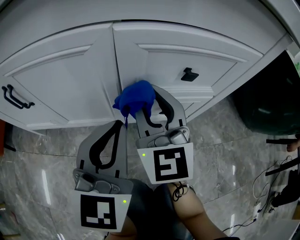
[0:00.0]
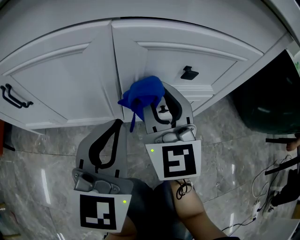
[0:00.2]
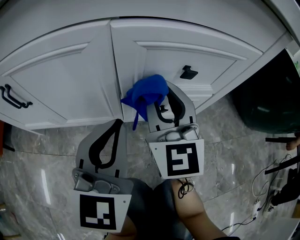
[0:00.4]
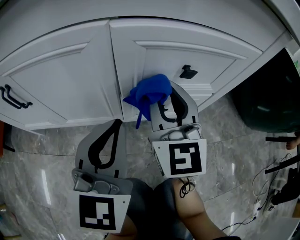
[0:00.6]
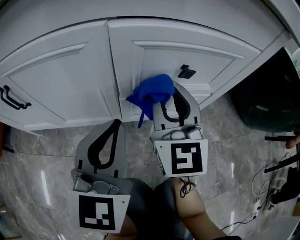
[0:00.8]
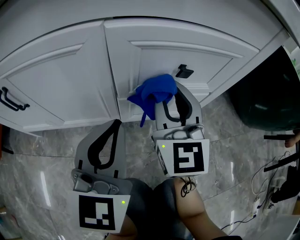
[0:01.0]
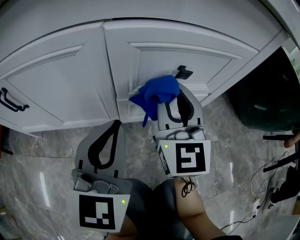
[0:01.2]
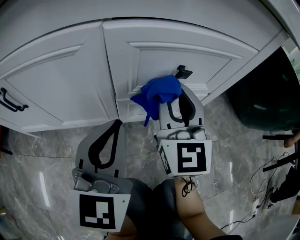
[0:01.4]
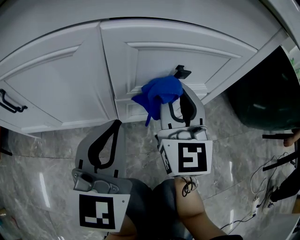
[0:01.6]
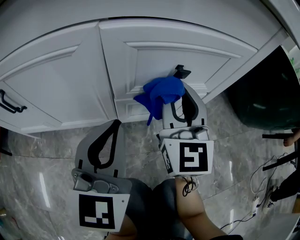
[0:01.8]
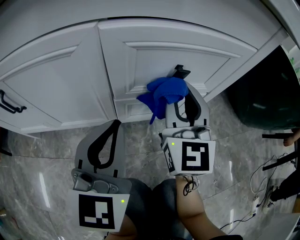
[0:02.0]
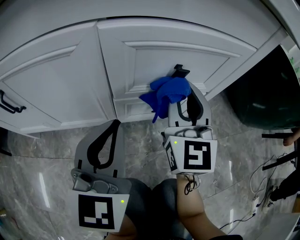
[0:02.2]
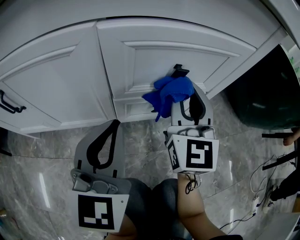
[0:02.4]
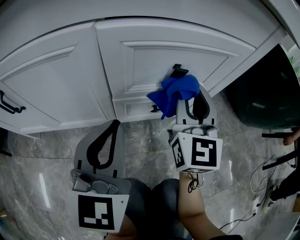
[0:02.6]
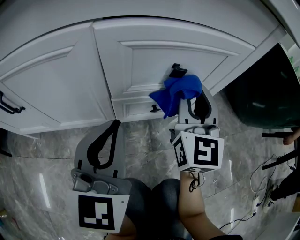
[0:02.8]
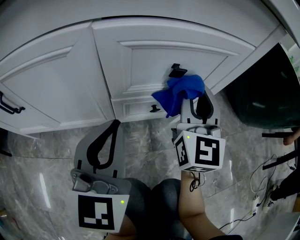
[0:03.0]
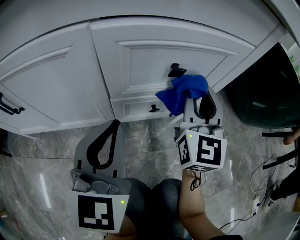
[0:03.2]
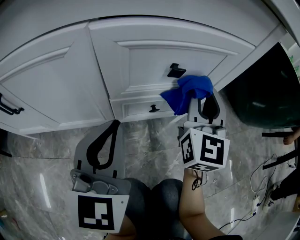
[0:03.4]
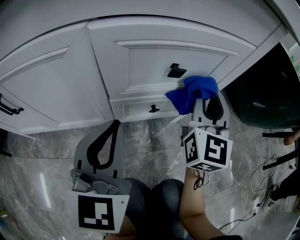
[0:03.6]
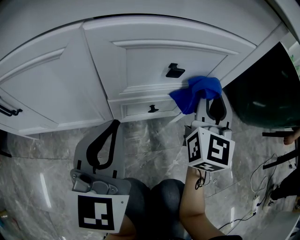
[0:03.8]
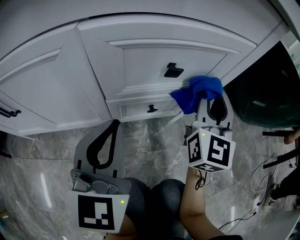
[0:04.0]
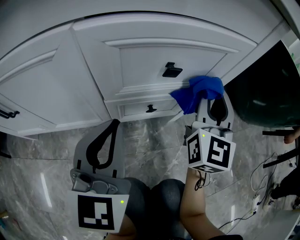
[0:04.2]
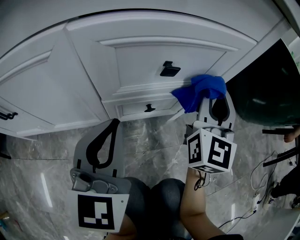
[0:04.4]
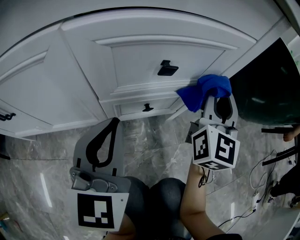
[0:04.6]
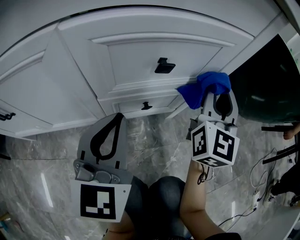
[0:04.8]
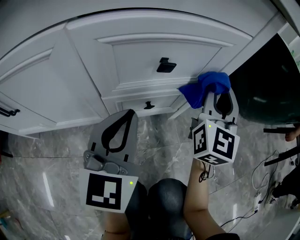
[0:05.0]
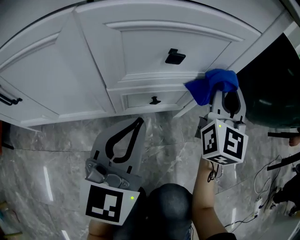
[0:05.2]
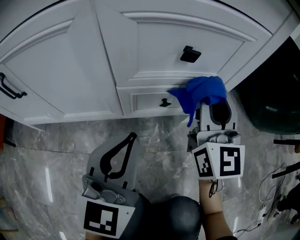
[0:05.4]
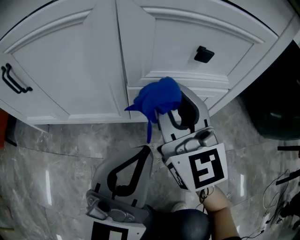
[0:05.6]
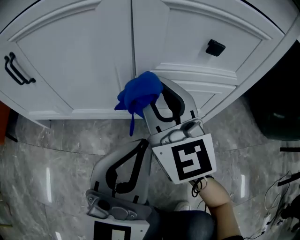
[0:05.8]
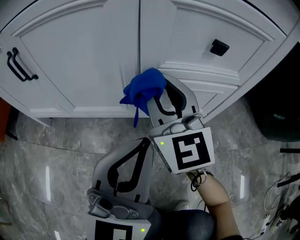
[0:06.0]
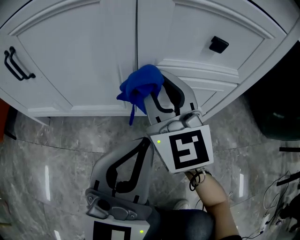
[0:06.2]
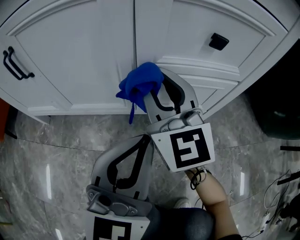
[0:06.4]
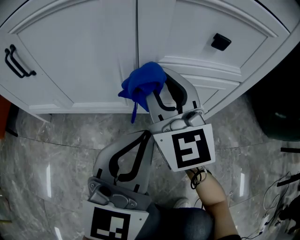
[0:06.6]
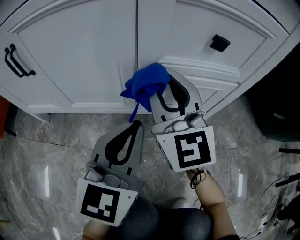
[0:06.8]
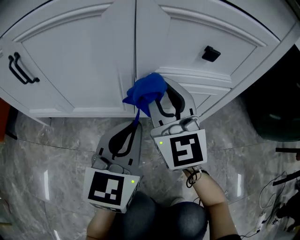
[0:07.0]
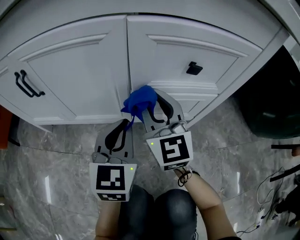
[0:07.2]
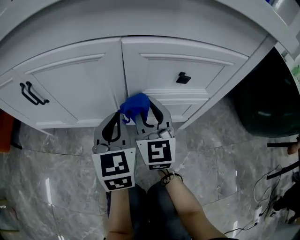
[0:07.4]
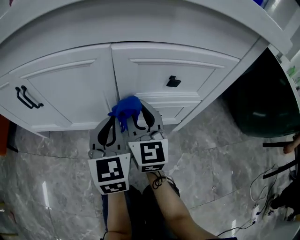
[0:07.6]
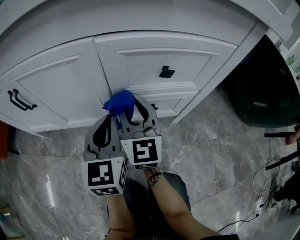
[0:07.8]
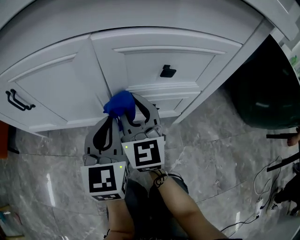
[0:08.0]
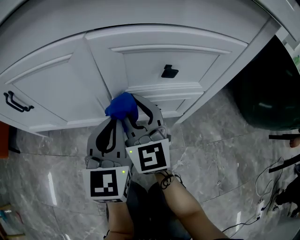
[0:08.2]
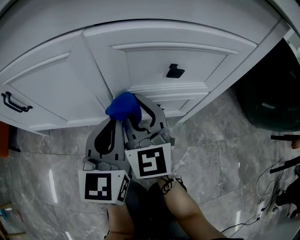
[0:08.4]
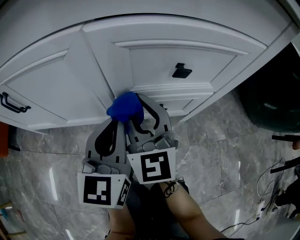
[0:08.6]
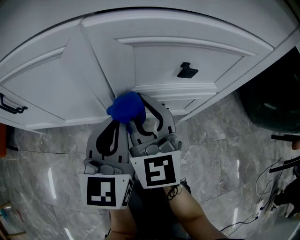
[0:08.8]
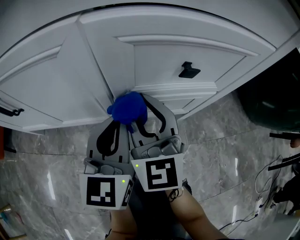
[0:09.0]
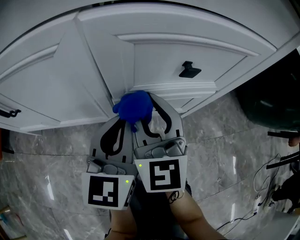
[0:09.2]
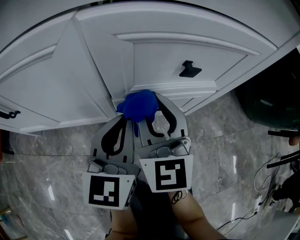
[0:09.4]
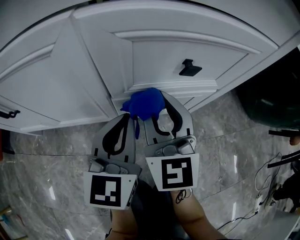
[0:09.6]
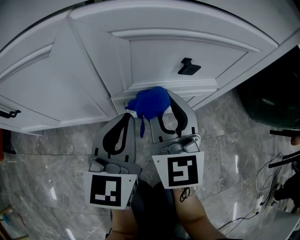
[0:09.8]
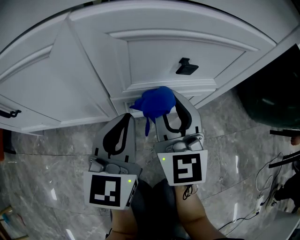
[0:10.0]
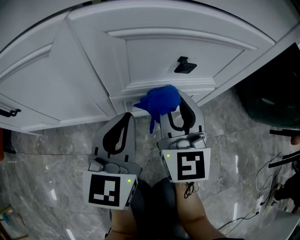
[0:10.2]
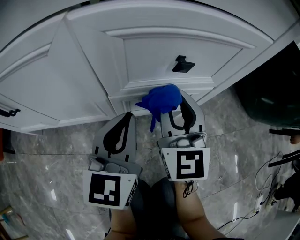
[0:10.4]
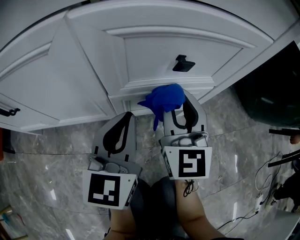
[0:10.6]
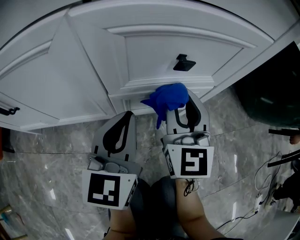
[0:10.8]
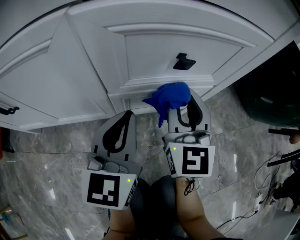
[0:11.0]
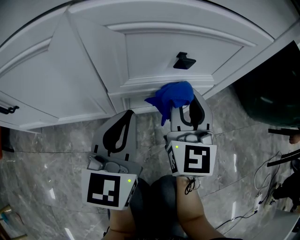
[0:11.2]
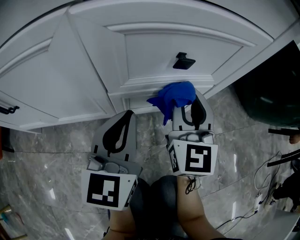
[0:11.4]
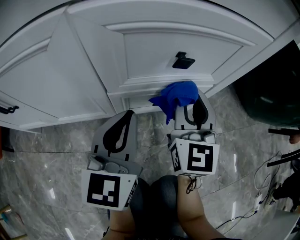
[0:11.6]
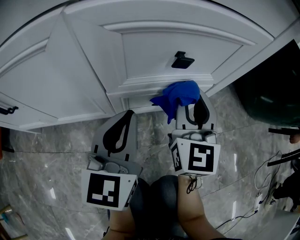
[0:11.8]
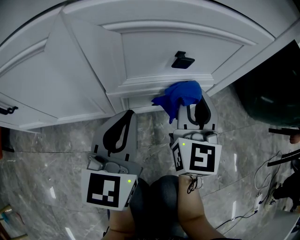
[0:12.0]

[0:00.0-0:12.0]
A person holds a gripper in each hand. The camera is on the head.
0:00.0 to 0:01.6: The right gripper travels to the right by approximately 10 cm.
0:01.6 to 0:03.0: The right gripper is displaced to the right by approximately 5 cm.
0:03.0 to 0:04.4: The right gripper goes about 5 cm to the right.
0:04.4 to 0:06.0: The right gripper heads to the left, covering approximately 25 cm, and swivels some 40 degrees. The left gripper is displaced backward by some 5 cm.
0:06.0 to 0:07.6: The left gripper goes about 10 cm forward, and rotates roughly 20 degrees.
0:07.6 to 0:09.0: The grippers move only a little.
0:09.0 to 0:10.4: The right gripper goes about 10 cm to the right.
0:10.4 to 0:12.0: The right gripper moves to the right, roughly 5 cm.

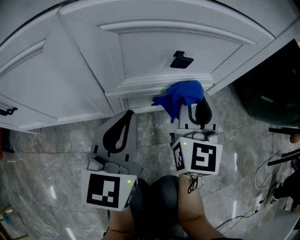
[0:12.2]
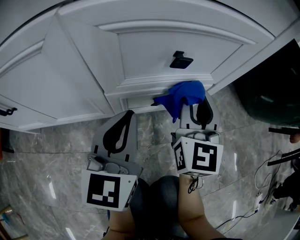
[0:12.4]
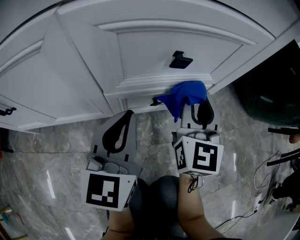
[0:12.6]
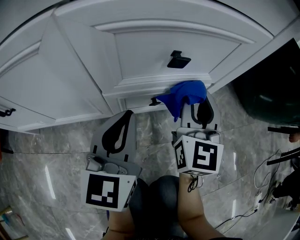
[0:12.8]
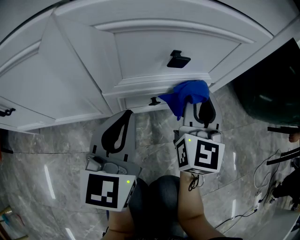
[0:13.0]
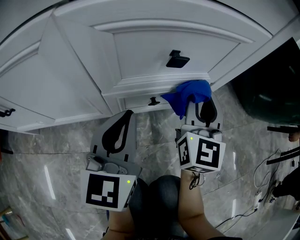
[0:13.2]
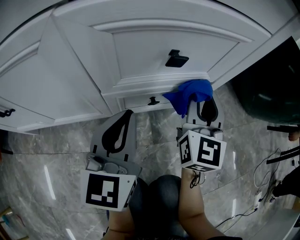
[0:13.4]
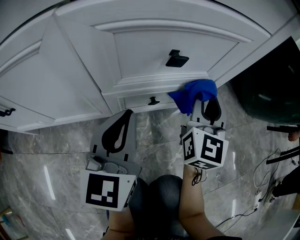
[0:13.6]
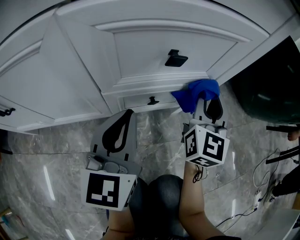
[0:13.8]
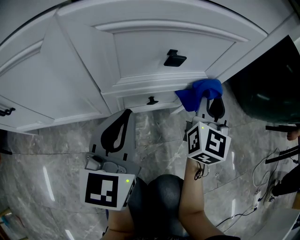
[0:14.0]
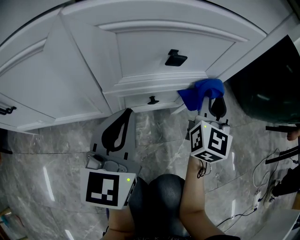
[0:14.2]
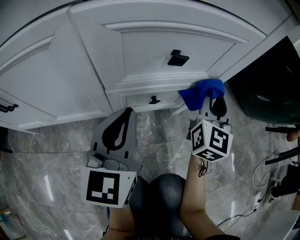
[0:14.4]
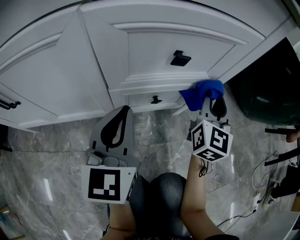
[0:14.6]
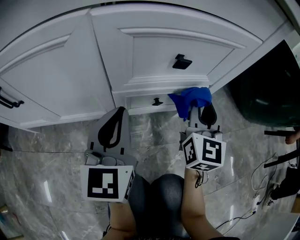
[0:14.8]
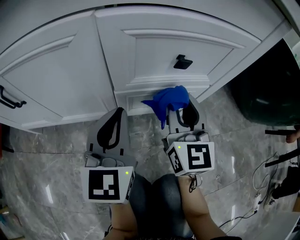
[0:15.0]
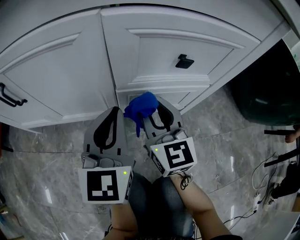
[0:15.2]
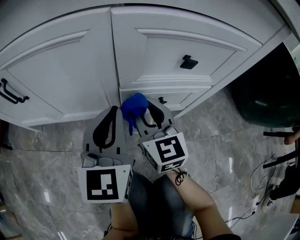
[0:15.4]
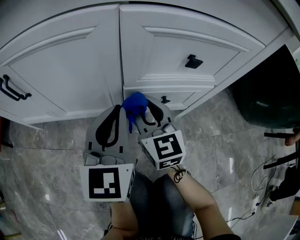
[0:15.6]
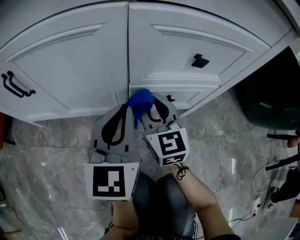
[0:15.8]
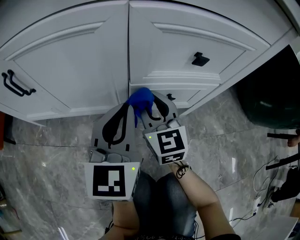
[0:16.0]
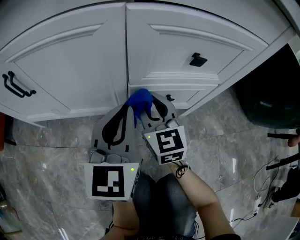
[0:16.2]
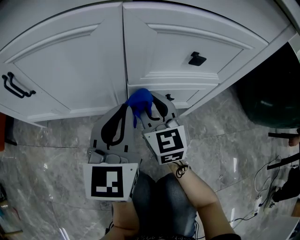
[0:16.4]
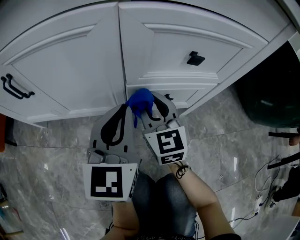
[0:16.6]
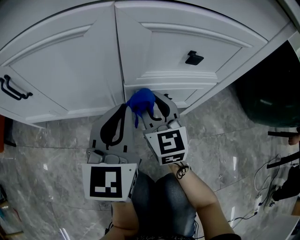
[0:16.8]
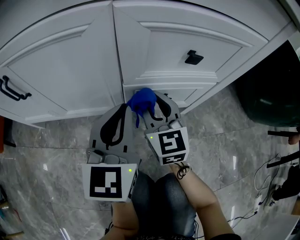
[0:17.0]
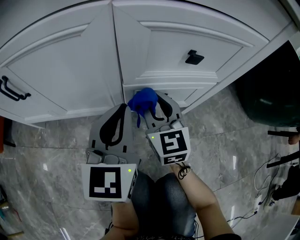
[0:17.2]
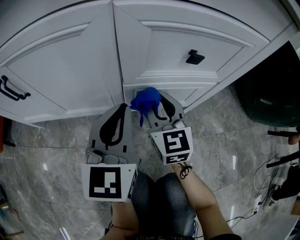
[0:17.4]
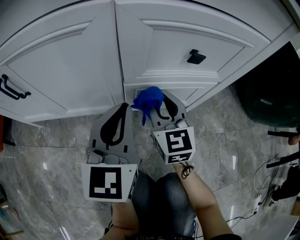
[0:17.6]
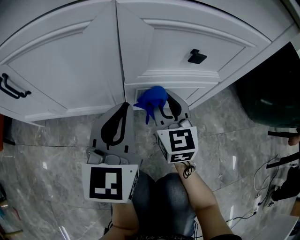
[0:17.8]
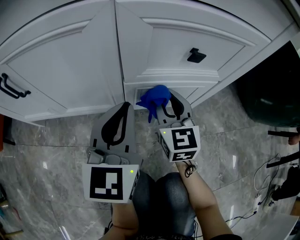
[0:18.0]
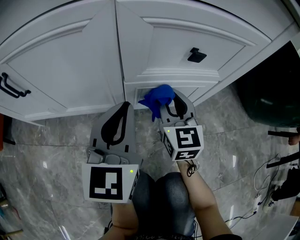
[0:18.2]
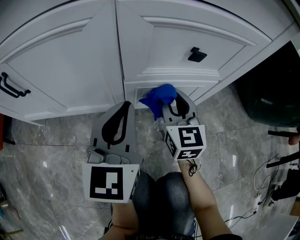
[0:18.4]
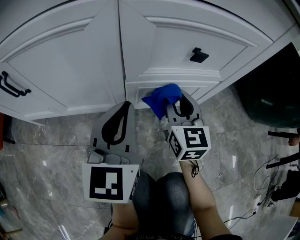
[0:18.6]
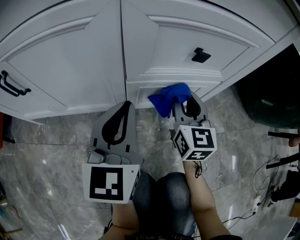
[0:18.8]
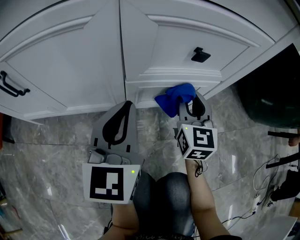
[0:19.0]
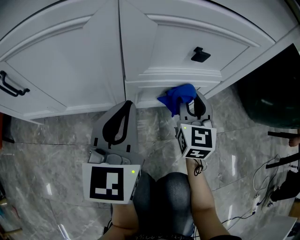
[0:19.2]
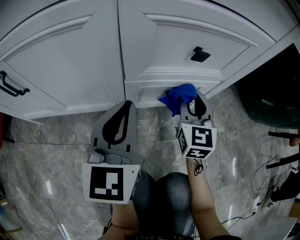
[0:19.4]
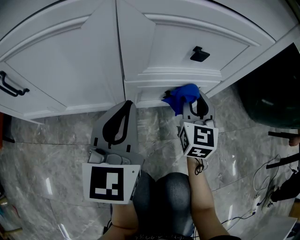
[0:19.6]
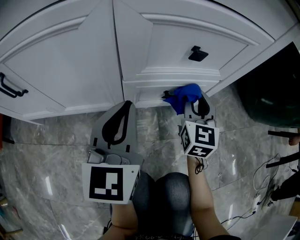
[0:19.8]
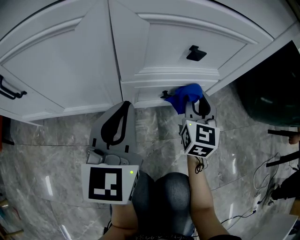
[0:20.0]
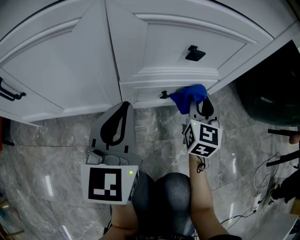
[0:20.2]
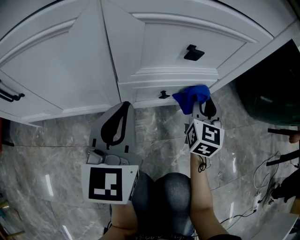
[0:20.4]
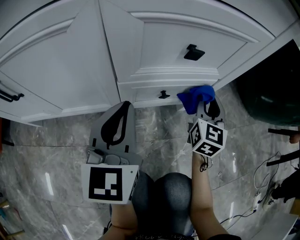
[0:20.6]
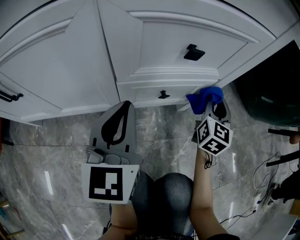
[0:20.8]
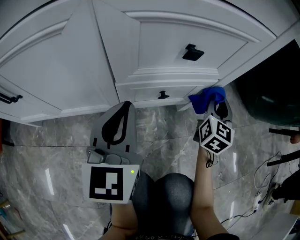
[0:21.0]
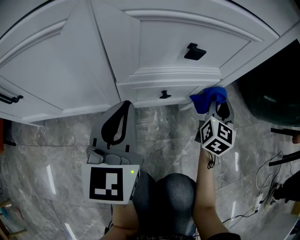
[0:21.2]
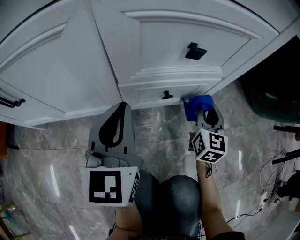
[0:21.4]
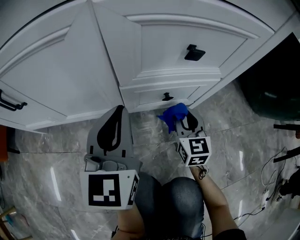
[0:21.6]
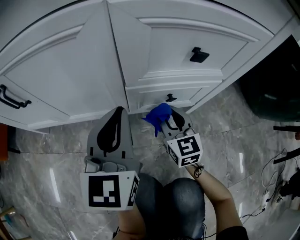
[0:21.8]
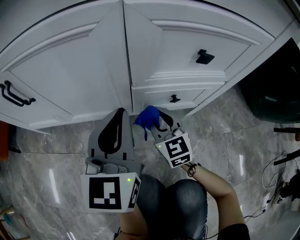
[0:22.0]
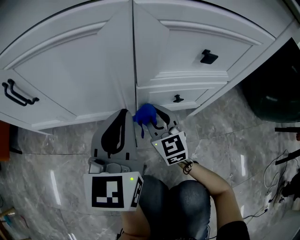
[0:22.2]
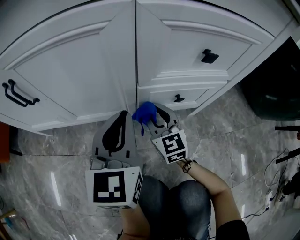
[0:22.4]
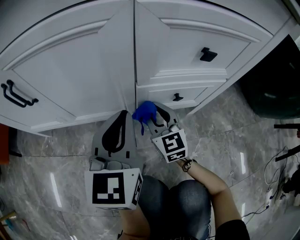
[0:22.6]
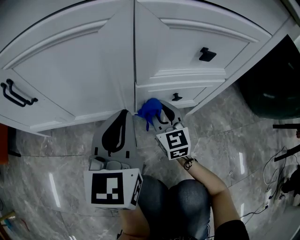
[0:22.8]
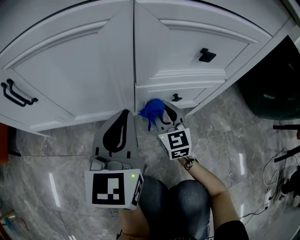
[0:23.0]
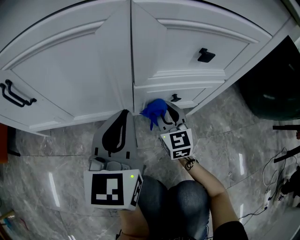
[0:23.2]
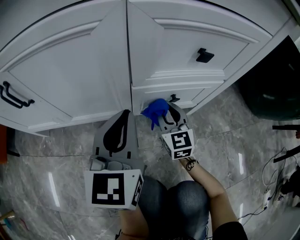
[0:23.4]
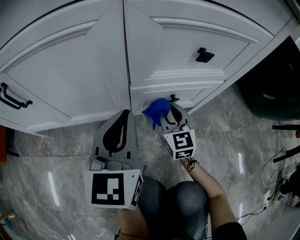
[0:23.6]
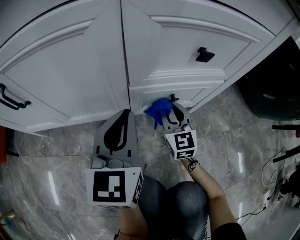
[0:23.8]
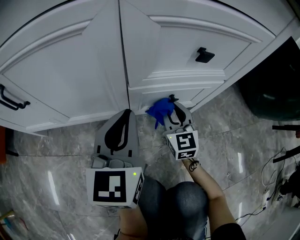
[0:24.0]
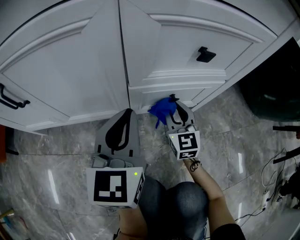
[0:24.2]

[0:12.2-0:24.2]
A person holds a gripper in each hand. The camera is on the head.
0:12.2 to 0:13.8: The right gripper is displaced to the right by roughly 5 cm.
0:13.8 to 0:15.2: The left gripper is displaced to the left by some 5 cm. The right gripper heads to the left, covering about 20 cm, and rotates roughly 40 degrees.
0:15.2 to 0:16.6: The right gripper changes place by roughly 5 cm.
0:16.6 to 0:18.2: The right gripper goes some 5 cm to the right.
0:18.2 to 0:19.8: The right gripper moves to the right, some 10 cm.
0:19.8 to 0:21.2: The right gripper is displaced to the right by roughly 10 cm.
0:21.2 to 0:22.6: The left gripper is displaced to the left by some 5 cm; the right gripper goes about 30 cm to the left, and changes its angle by approximately 40 degrees.
0:22.6 to 0:24.2: The right gripper travels to the right by about 10 cm.
